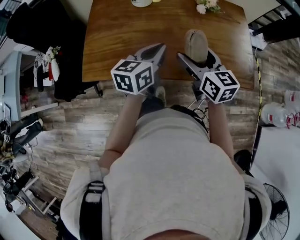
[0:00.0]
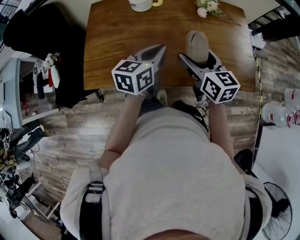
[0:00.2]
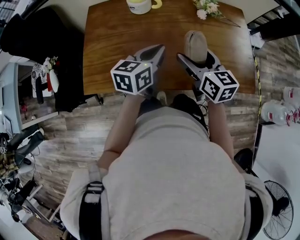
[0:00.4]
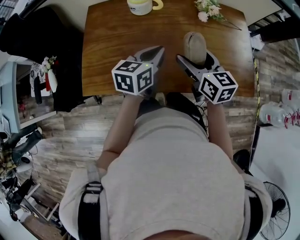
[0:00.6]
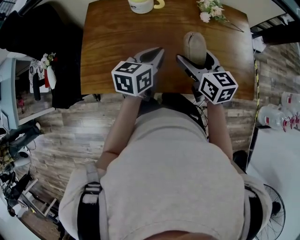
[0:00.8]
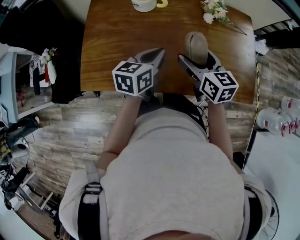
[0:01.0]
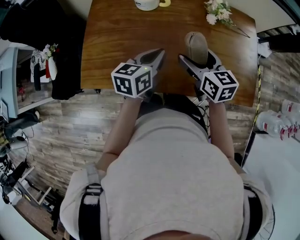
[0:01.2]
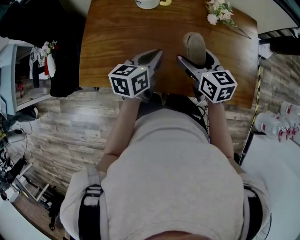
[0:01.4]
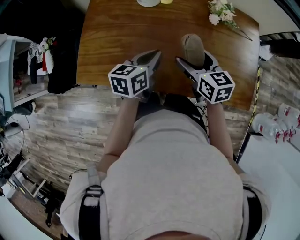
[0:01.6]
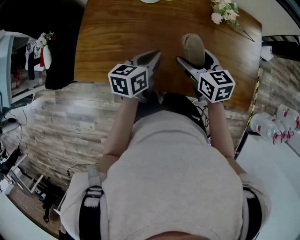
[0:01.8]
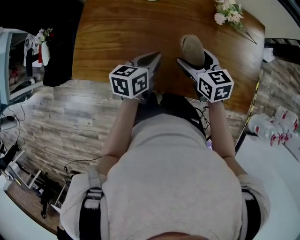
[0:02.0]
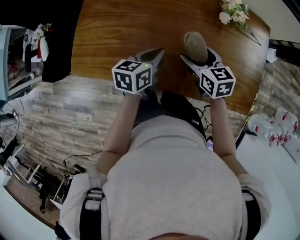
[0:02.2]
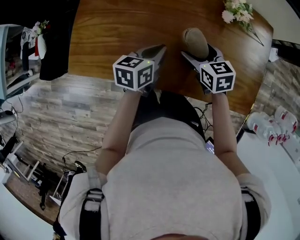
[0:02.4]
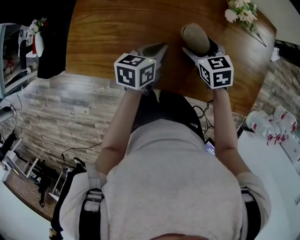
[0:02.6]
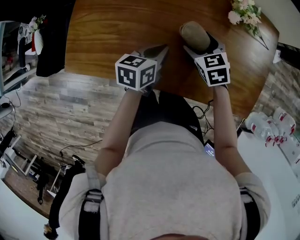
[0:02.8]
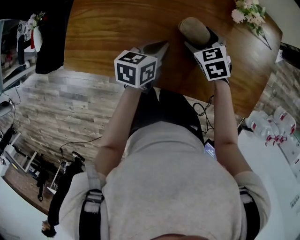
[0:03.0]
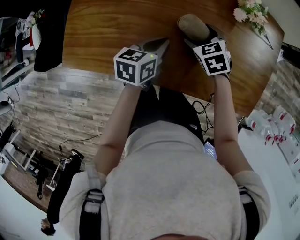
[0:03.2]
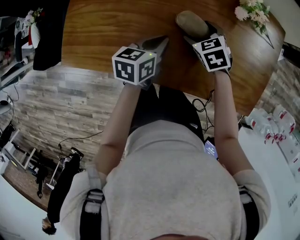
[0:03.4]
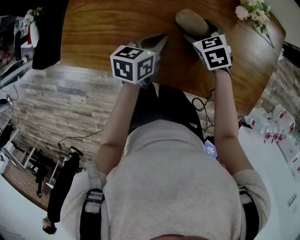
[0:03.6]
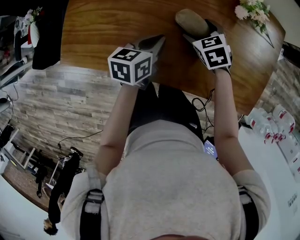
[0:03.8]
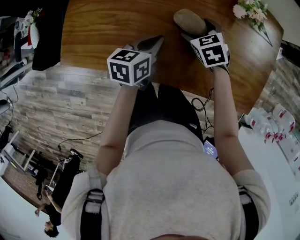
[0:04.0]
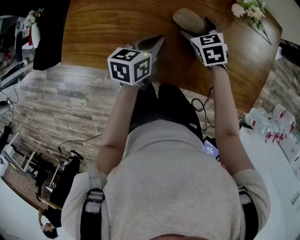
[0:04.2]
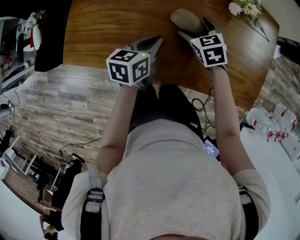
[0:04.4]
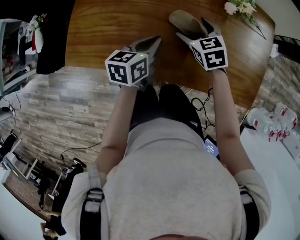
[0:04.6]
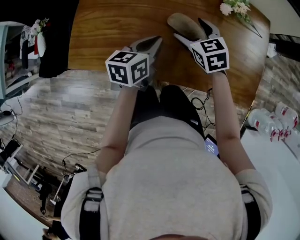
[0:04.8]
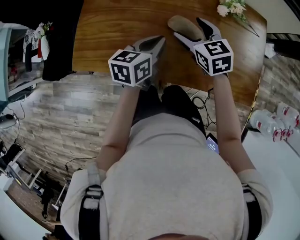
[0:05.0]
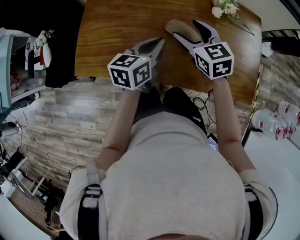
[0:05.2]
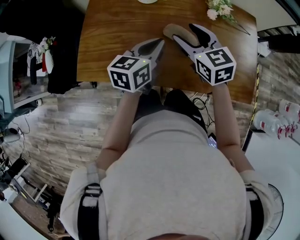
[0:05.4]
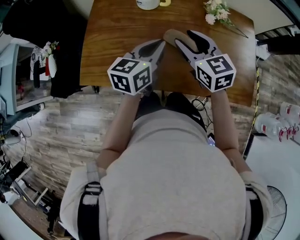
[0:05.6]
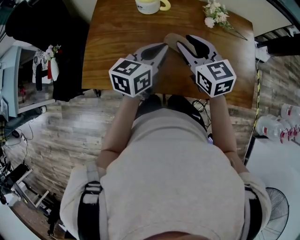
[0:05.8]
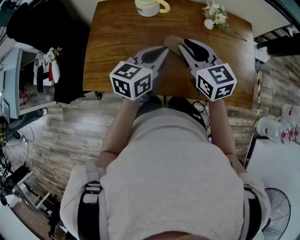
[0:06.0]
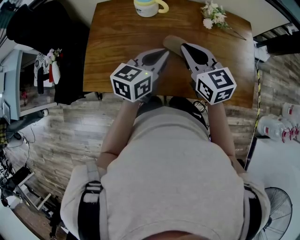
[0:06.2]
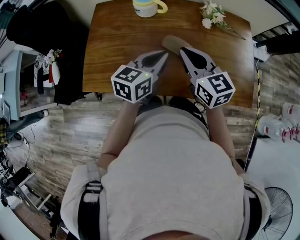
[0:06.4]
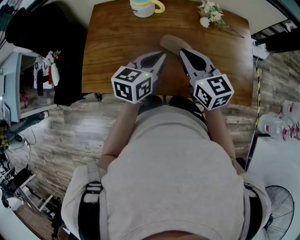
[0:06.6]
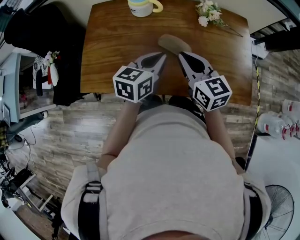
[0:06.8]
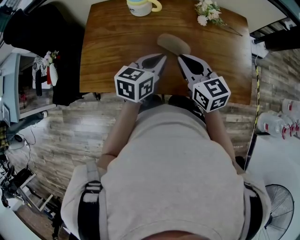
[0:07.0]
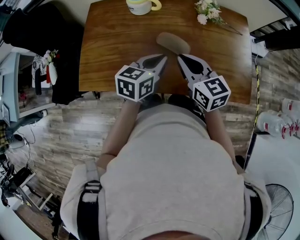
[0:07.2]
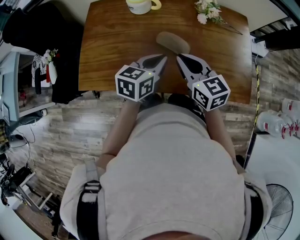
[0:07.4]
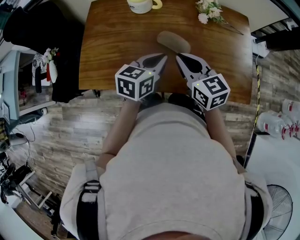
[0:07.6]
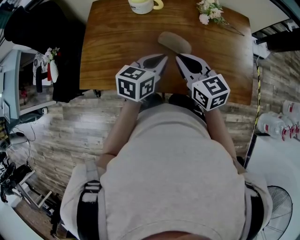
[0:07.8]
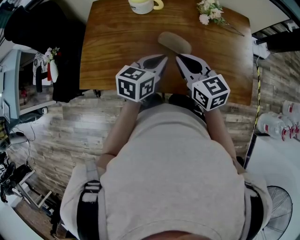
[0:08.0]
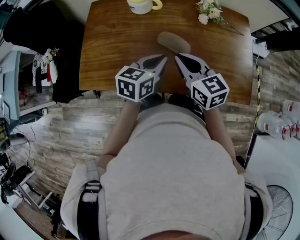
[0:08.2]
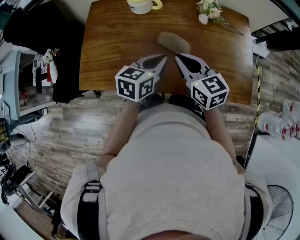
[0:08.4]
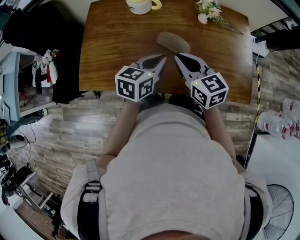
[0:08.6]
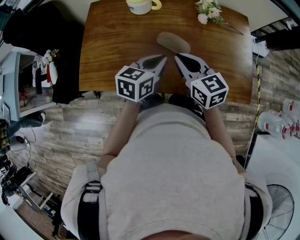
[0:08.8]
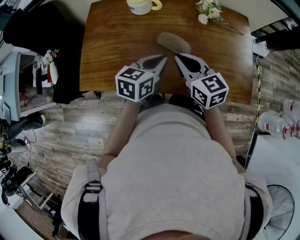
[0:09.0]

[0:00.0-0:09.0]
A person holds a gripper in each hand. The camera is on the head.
0:00.0 to 0:01.6: Both grippers travel together forward and downward, roughly 10 cm.
0:01.6 to 0:03.0: The right gripper goes approximately 15 cm downward and forward, and changes its angle by approximately 40 degrees. Meanwhile the left gripper goes some 10 cm downward.
0:03.0 to 0:04.4: The grippers move only a little.
0:04.4 to 0:06.0: Both grippers travel together upward, about 20 cm. The left gripper turns by approximately 30 degrees. The right gripper tips its fingers upward by approximately 30 degrees, and closes its fingers.
0:06.0 to 0:07.6: The right gripper ends up some 5 cm from where it was; the left gripper changes place by about 5 cm.
0:07.6 to 0:09.0: The two grippers keep their place.

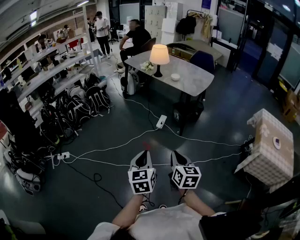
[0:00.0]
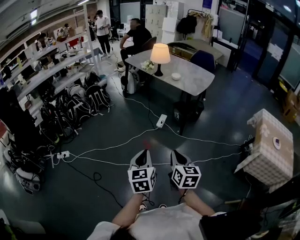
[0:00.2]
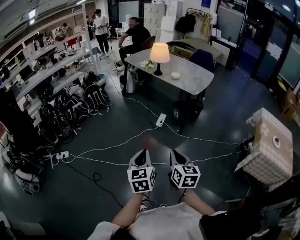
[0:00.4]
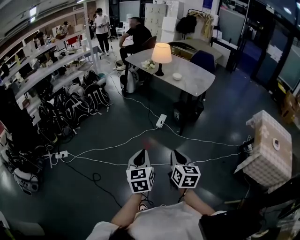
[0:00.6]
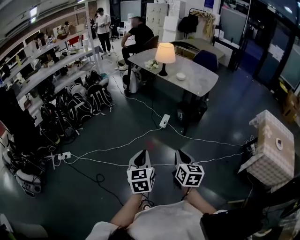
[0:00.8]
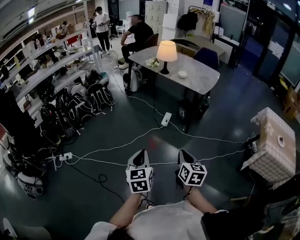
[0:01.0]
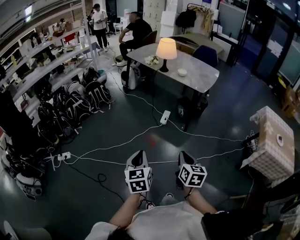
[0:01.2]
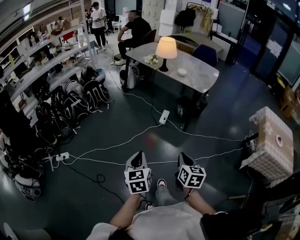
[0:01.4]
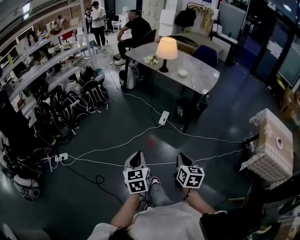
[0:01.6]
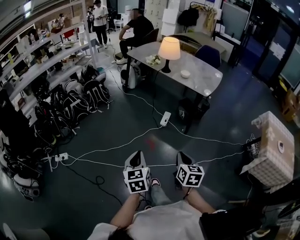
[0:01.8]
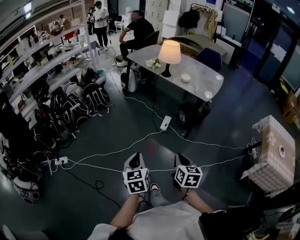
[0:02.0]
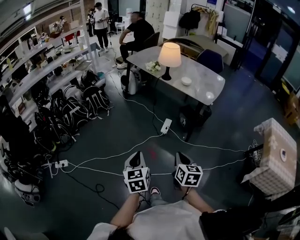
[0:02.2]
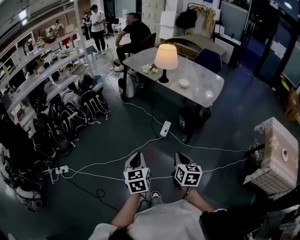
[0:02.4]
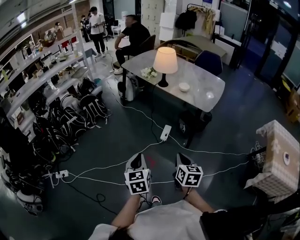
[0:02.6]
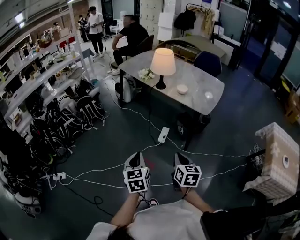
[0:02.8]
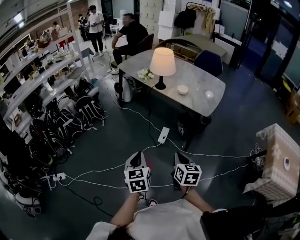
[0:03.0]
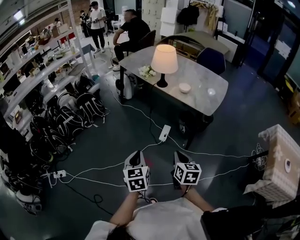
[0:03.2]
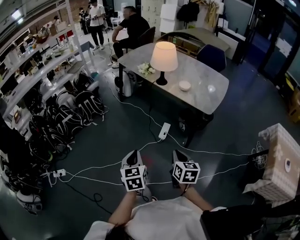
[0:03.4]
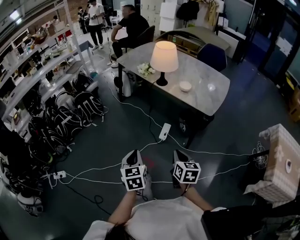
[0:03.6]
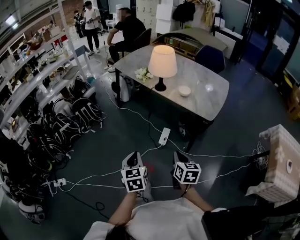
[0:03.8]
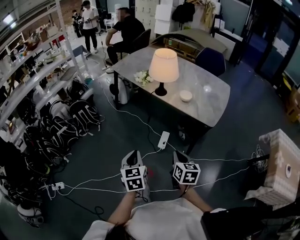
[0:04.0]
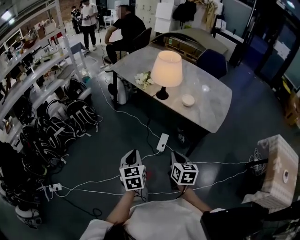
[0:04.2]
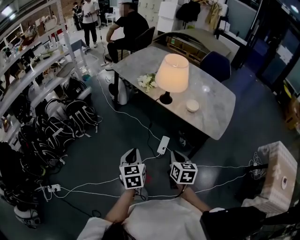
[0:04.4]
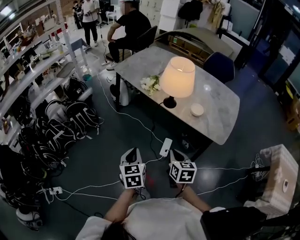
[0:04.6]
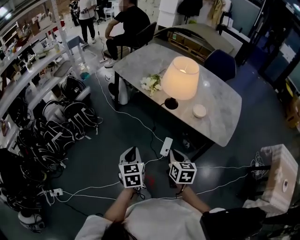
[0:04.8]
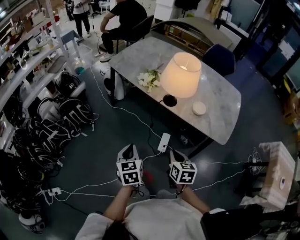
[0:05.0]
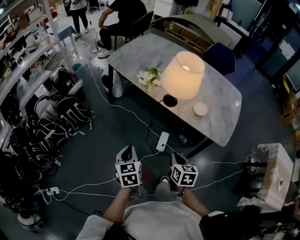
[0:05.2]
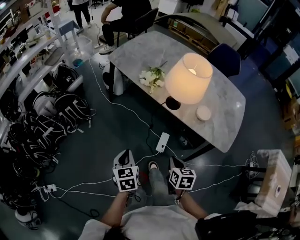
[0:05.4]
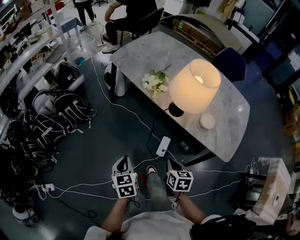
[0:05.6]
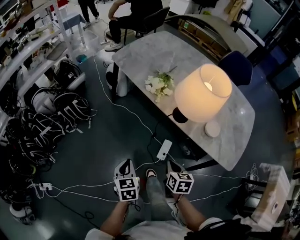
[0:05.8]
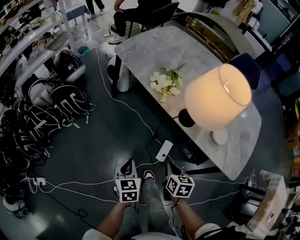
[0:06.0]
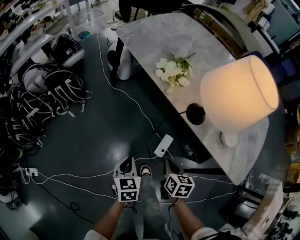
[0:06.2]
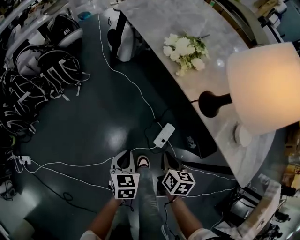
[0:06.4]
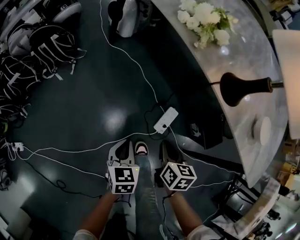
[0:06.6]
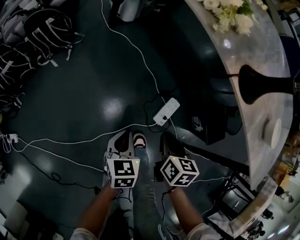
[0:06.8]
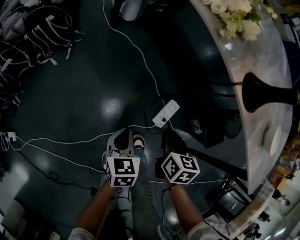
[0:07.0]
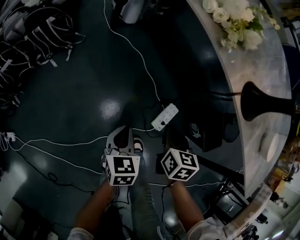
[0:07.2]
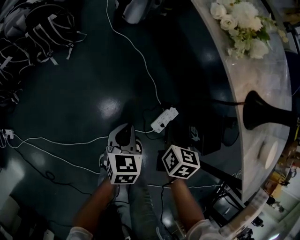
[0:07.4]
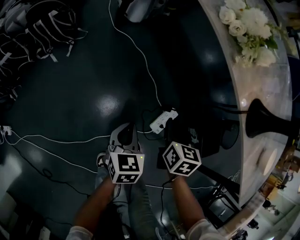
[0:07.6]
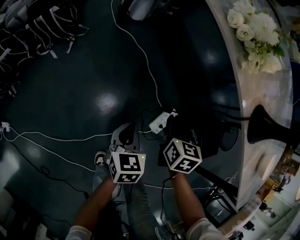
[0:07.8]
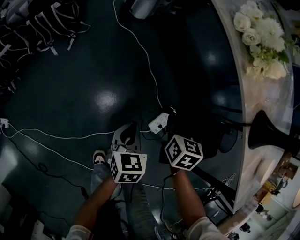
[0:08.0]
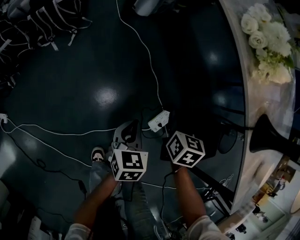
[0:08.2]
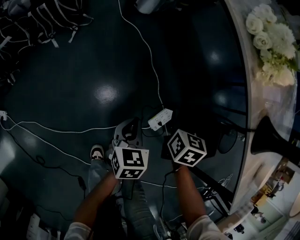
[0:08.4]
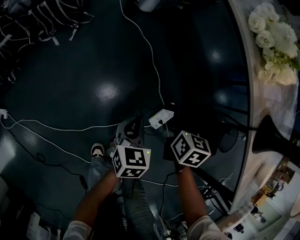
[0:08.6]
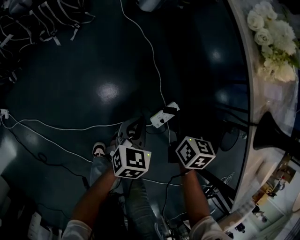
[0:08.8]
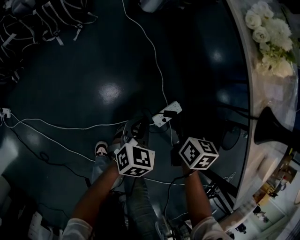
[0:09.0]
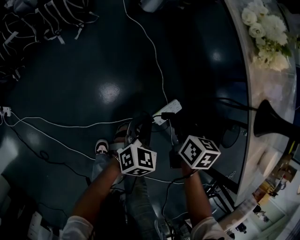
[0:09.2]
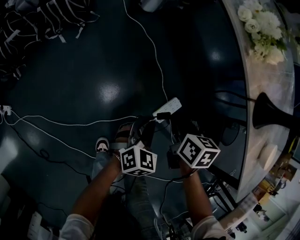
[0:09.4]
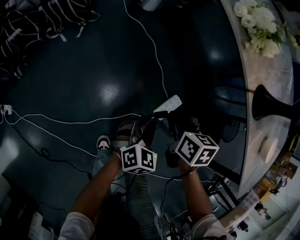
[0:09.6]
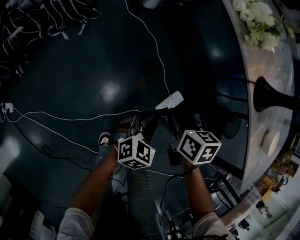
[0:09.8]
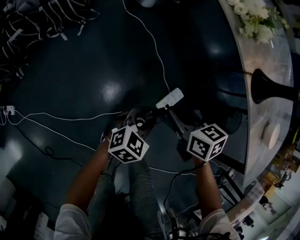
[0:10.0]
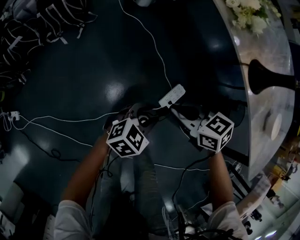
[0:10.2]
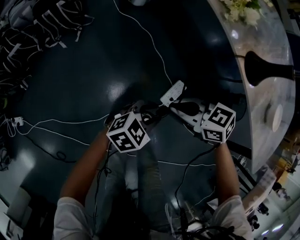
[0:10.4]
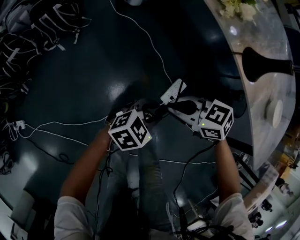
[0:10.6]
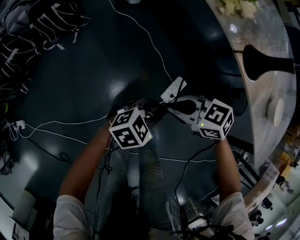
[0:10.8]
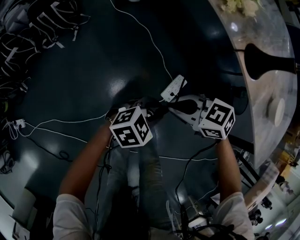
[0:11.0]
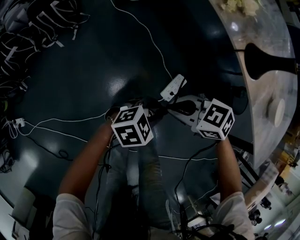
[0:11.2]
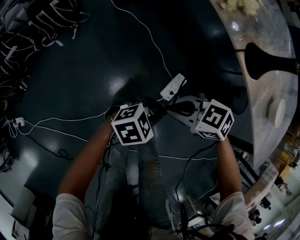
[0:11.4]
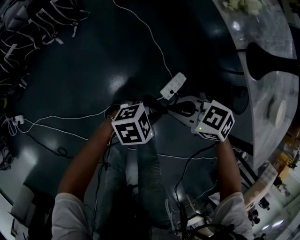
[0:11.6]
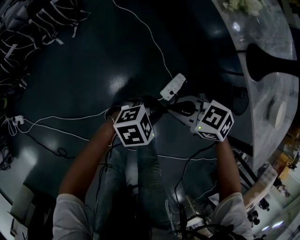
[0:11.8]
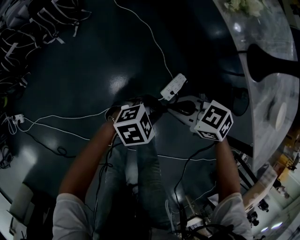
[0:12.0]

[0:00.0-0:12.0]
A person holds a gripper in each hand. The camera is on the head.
0:00.0 to 0:01.6: The left gripper shifts approximately 15 cm to the left, forward and downward. The right gripper travels forward, to the left and downward by about 10 cm.
0:01.6 to 0:03.0: The two grippers go approximately 25 cm forward.
0:03.0 to 0:04.4: Both grippers travel together forward, about 25 cm.
0:04.4 to 0:06.0: The grippers both shift forward and downward by about 30 cm.
0:06.0 to 0:07.6: The left gripper travels downward by approximately 25 cm; the right gripper moves downward and forward, roughly 30 cm.
0:07.6 to 0:09.0: The grippers stay close to where they were, moving slightly.
0:09.0 to 0:10.4: The left gripper ends up approximately 10 cm from where it was, rotates about 40 degrees, and opens, while the right gripper shifts by about 15 cm, and changes its angle by some 50 degrees.
0:10.4 to 0:12.0: The grippers make only small movements.

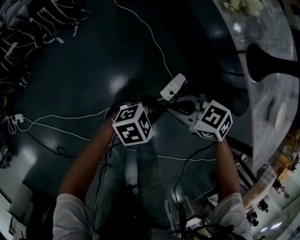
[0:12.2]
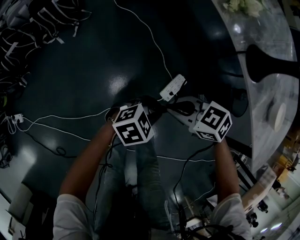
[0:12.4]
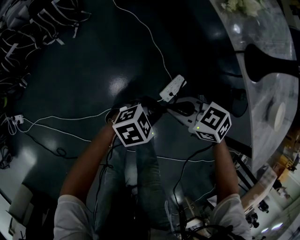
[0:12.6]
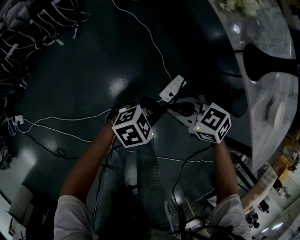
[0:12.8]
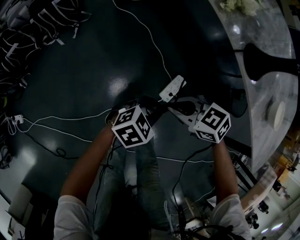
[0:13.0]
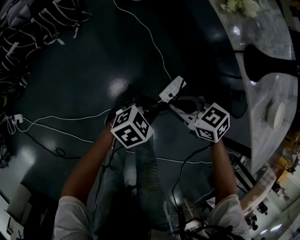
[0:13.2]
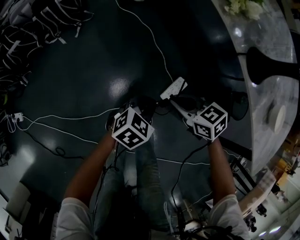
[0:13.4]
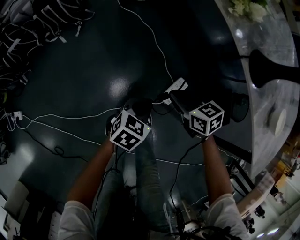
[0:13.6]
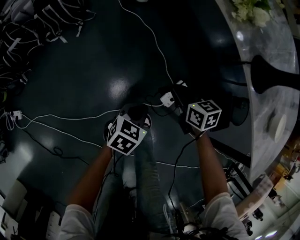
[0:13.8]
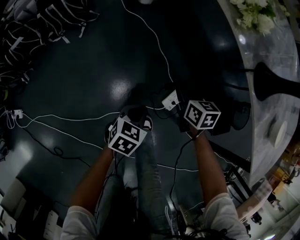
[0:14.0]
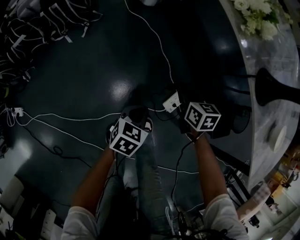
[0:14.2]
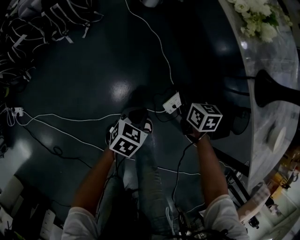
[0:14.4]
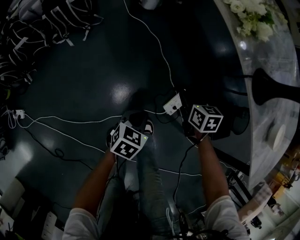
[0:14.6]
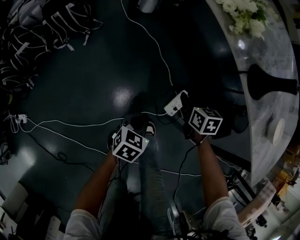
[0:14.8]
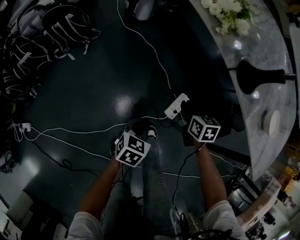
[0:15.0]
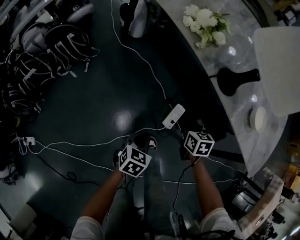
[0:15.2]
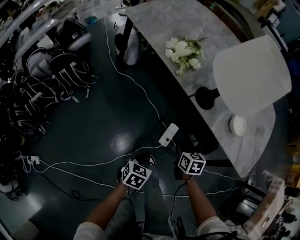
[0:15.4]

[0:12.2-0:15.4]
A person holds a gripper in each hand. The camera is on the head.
0:12.2 to 0:13.8: The right gripper moves some 15 cm, and rotates some 40 degrees; the left gripper moves some 5 cm, and changes its angle by roughly 40 degrees.
0:13.8 to 0:15.4: The right gripper travels upward, to the right and backward by some 15 cm, swivels roughly 30 degrees, and opens and closes again. The left gripper heads upward, covering about 10 cm.
